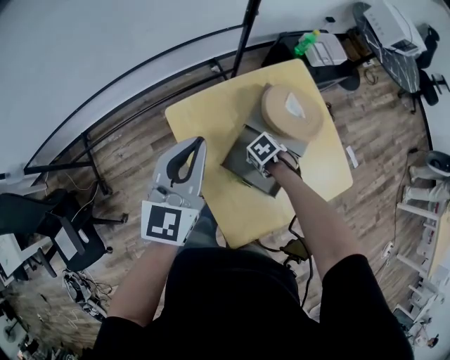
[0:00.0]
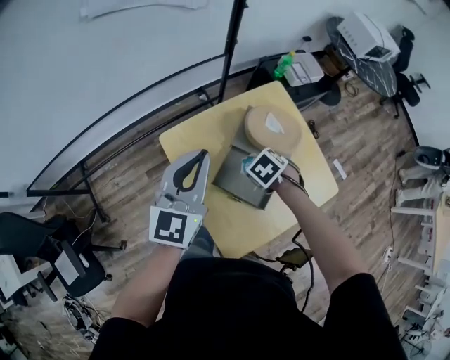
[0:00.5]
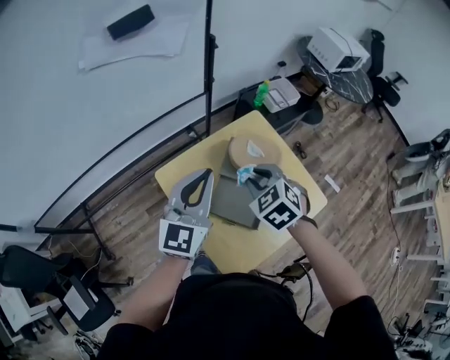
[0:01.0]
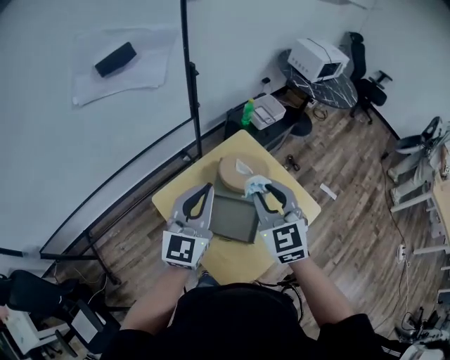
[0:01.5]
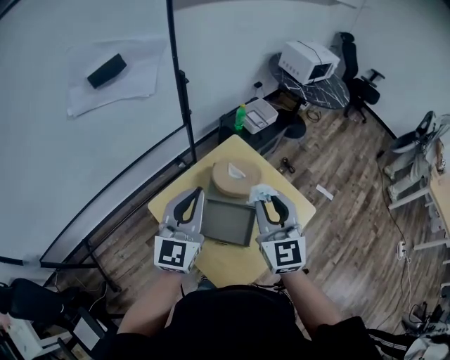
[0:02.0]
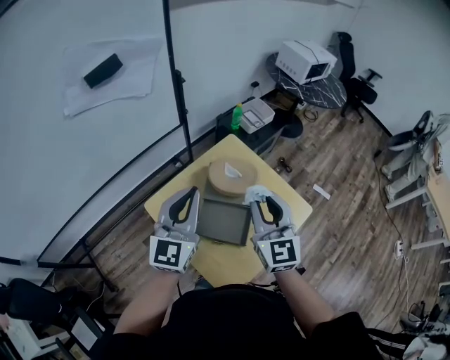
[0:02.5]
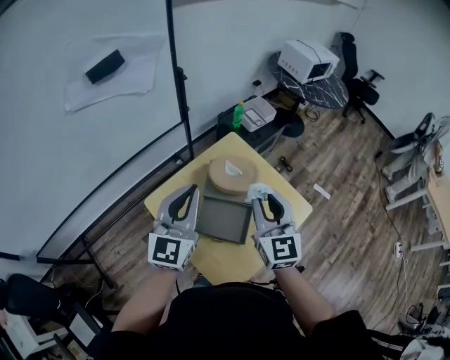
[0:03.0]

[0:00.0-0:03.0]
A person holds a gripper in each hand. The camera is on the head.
0:00.0 to 0:01.5: The left gripper travels upward by about 15 cm, and changes its angle by approximately 20 degrees. The right gripper shifts some 40 cm upward, and tilts its fingers about 60 degrees upward.
0:01.5 to 0:03.0: The right gripper ends up about 5 cm from where it was, and changes its angle by roughly 20 degrees.

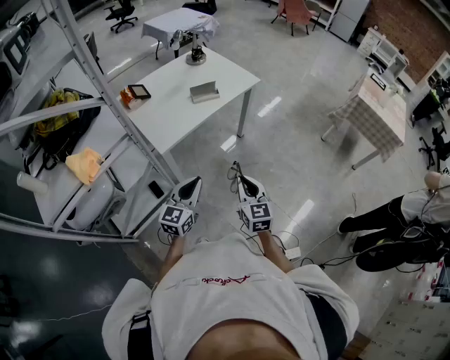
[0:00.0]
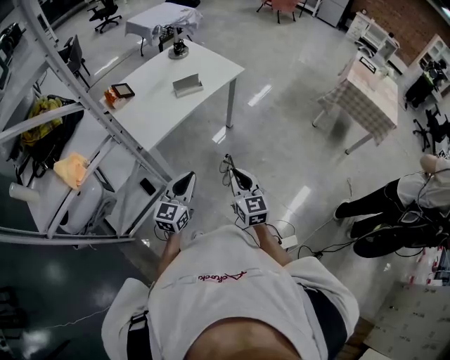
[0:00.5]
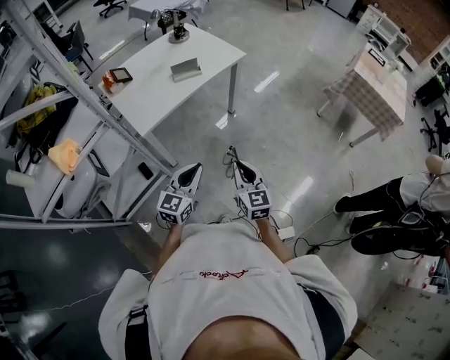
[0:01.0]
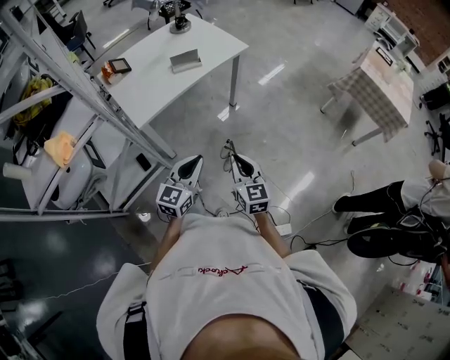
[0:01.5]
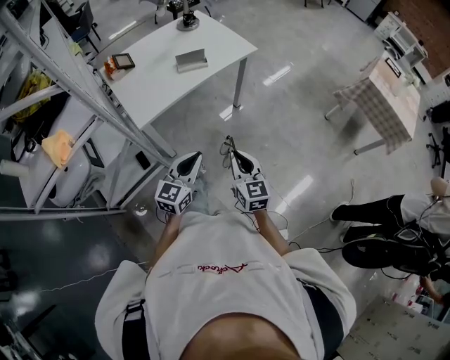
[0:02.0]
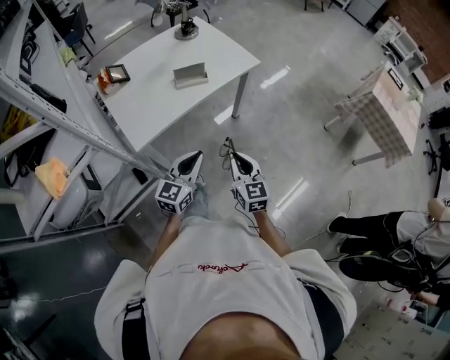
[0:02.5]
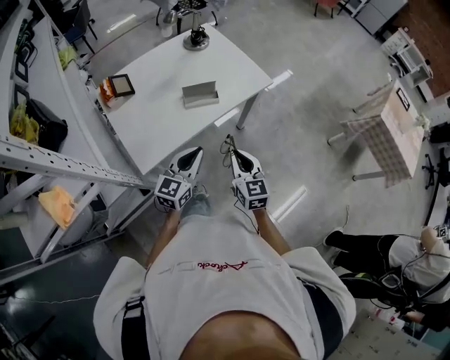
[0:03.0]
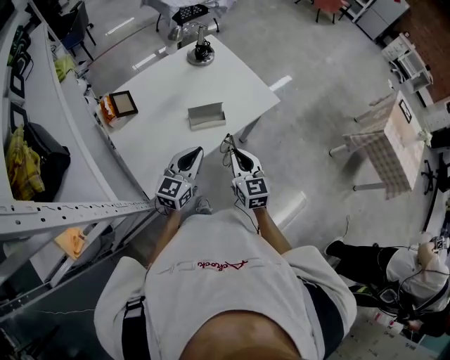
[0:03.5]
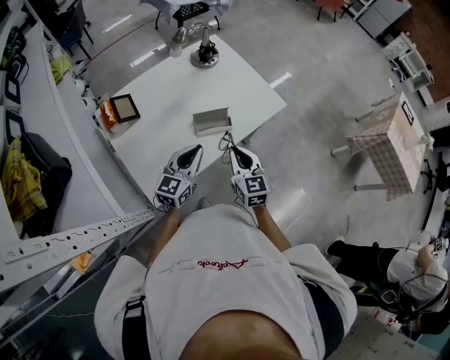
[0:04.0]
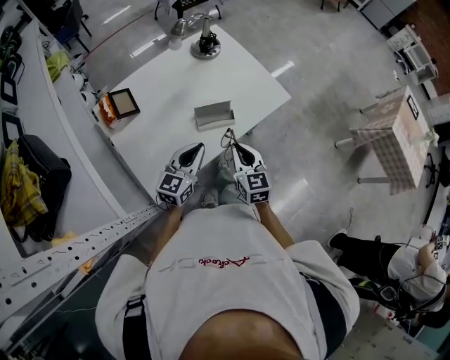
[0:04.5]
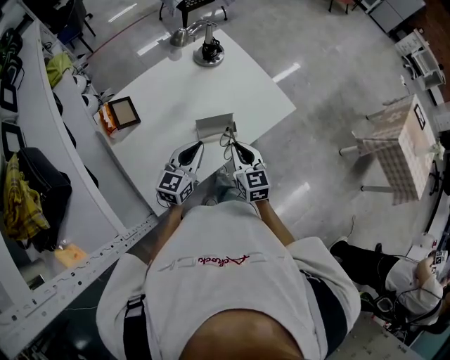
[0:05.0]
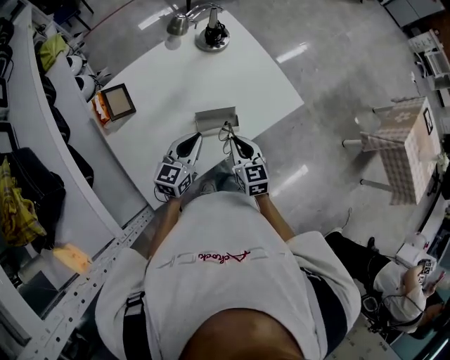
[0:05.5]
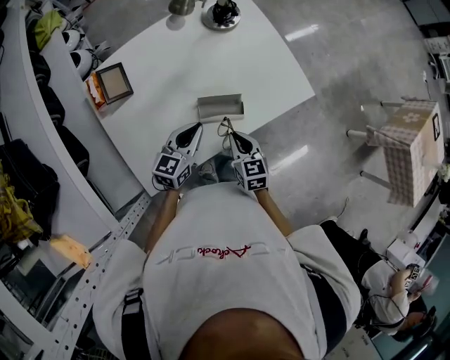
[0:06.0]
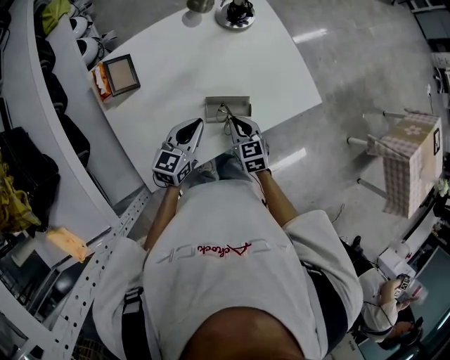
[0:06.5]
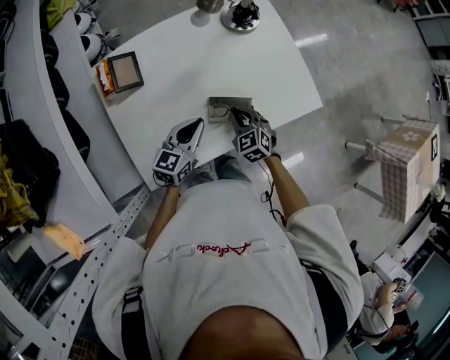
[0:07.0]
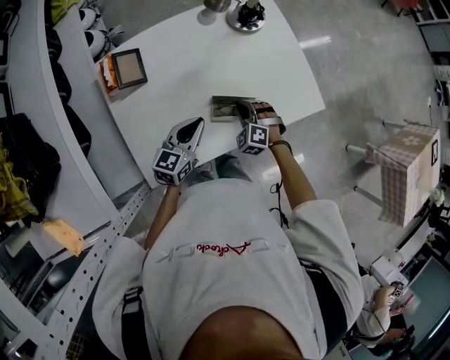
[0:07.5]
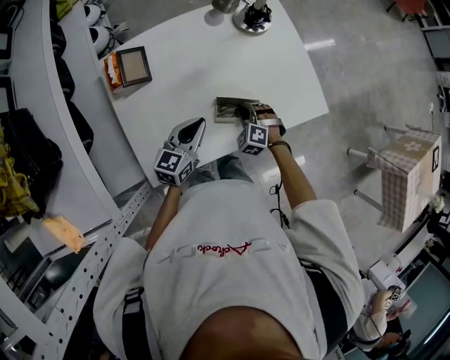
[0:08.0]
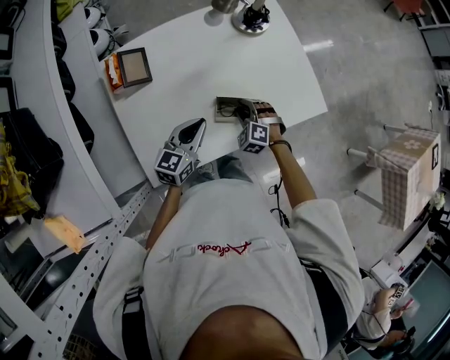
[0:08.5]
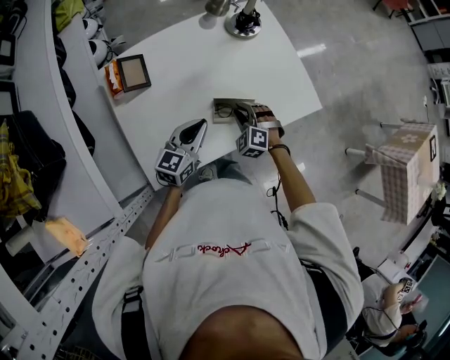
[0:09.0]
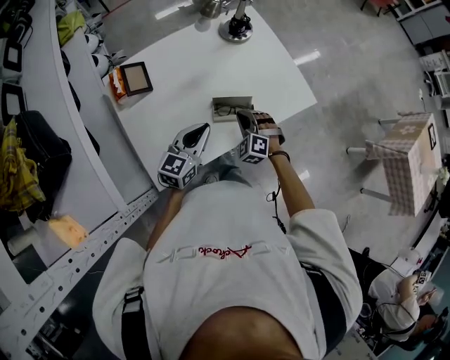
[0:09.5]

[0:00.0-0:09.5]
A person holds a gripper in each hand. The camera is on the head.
0:00.0 to 0:02.0: Both grippers travel together to the right and forward, some 10 cm.
0:02.0 to 0:04.0: The two grippers travel together, forward and to the left, roughly 40 cm.
0:04.0 to 0:05.5: Both grippers travel together forward and downward, roughly 10 cm.
0:05.5 to 0:07.5: The right gripper travels downward, forward and to the left by approximately 15 cm, and rotates around the line of its fingers by roughly 70 degrees, counterclockwise from behind. The left gripper shifts by approximately 5 cm.
0:07.5 to 0:09.5: The right gripper moves approximately 5 cm, and opens, then closes once more. The left gripper ends up approximately 5 cm from where it was.

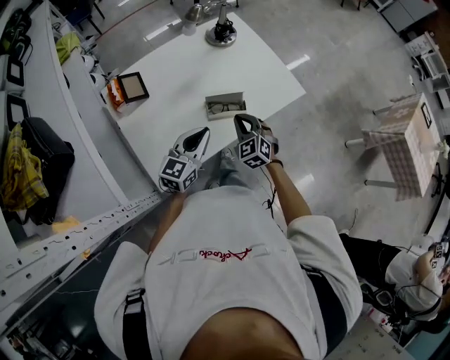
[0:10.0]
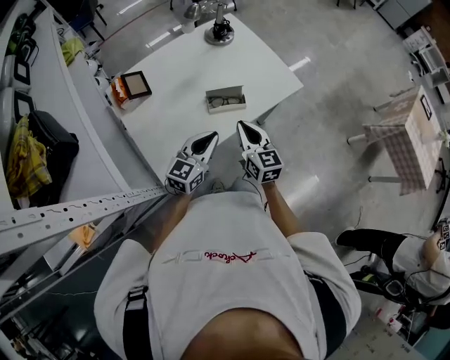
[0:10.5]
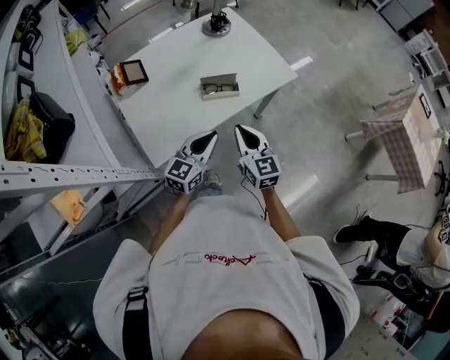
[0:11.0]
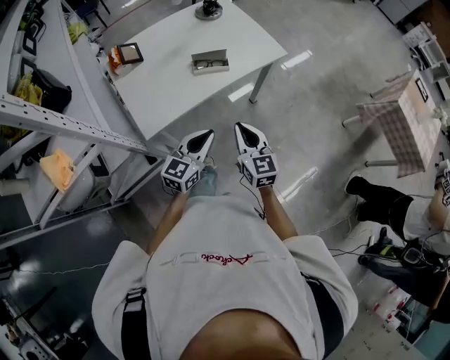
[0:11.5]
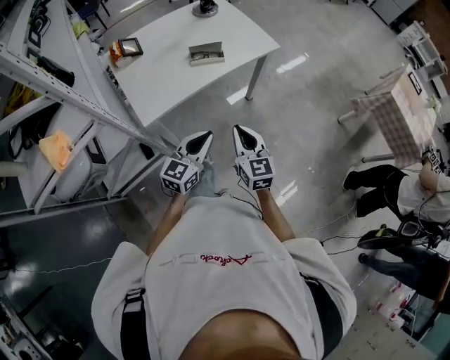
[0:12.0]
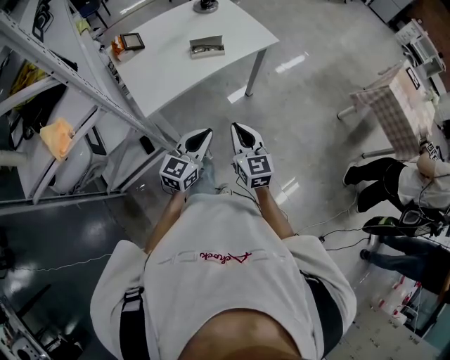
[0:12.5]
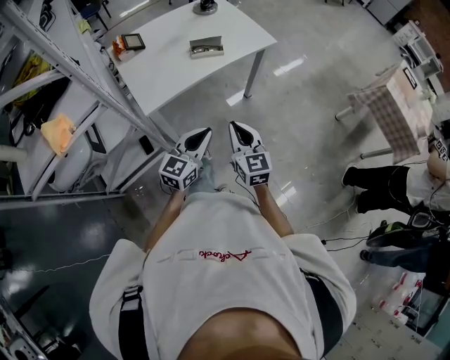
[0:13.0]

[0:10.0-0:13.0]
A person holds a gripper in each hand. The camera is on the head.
0:10.0 to 0:11.5: Both grippers travel together backward and to the right, approximately 25 cm. The right gripper rotates some 40 degrees.
0:11.5 to 0:13.0: Both grippers travel together backward, some 15 cm.

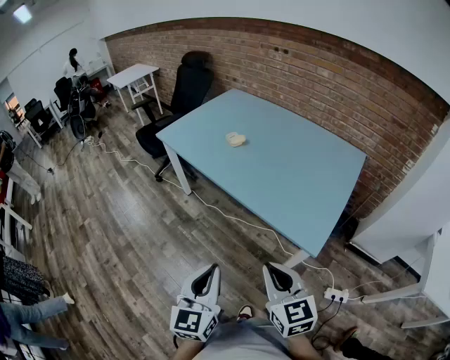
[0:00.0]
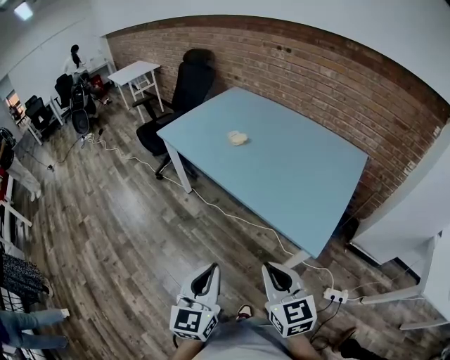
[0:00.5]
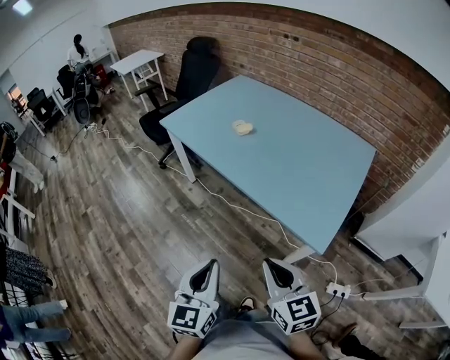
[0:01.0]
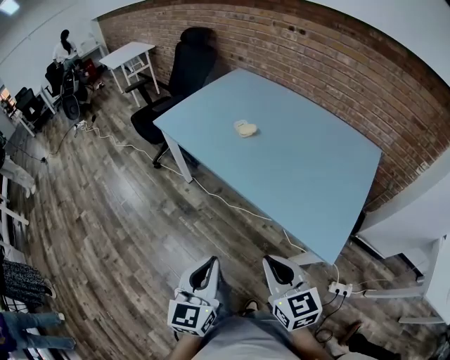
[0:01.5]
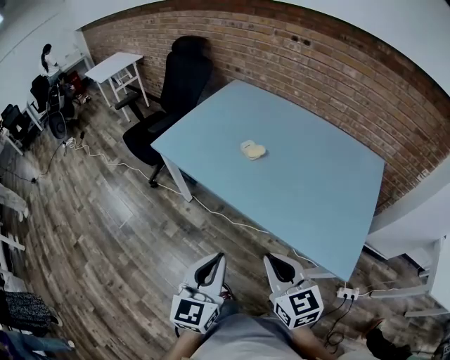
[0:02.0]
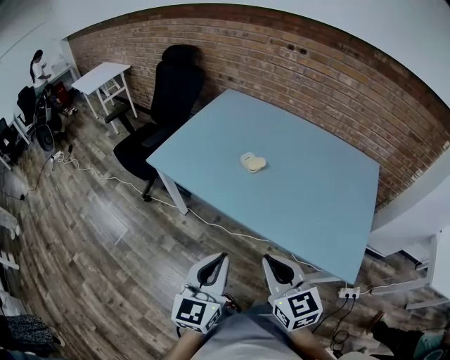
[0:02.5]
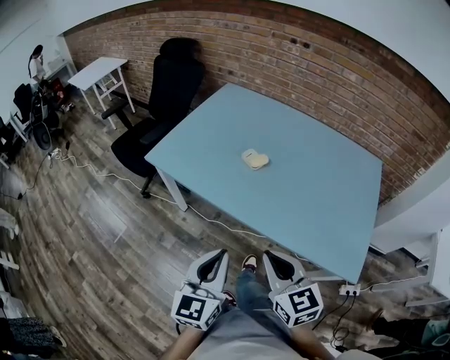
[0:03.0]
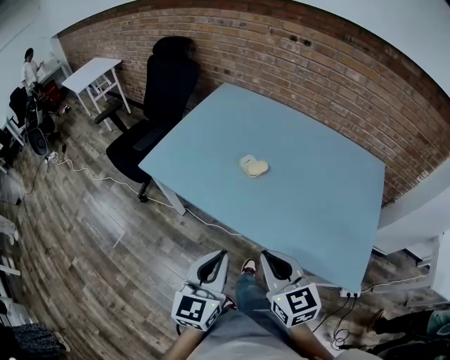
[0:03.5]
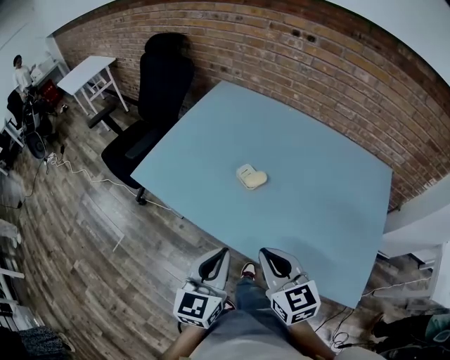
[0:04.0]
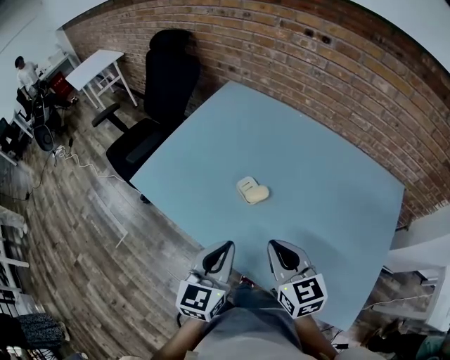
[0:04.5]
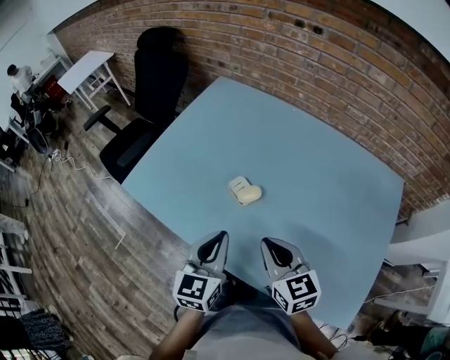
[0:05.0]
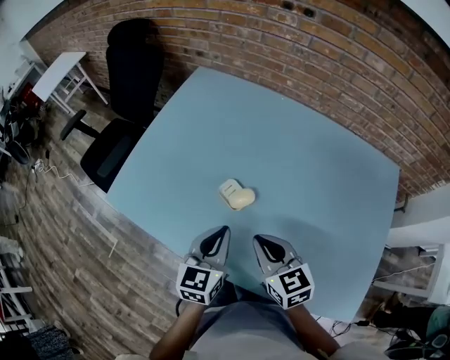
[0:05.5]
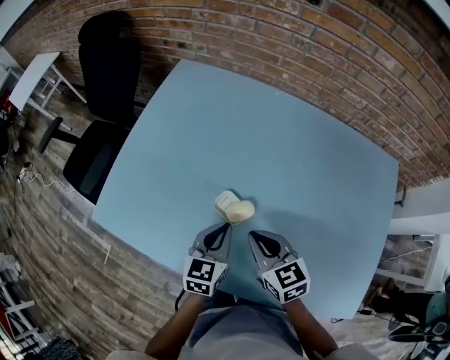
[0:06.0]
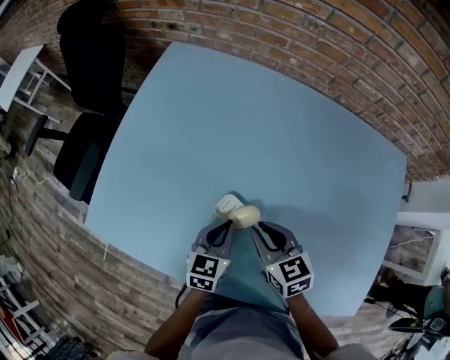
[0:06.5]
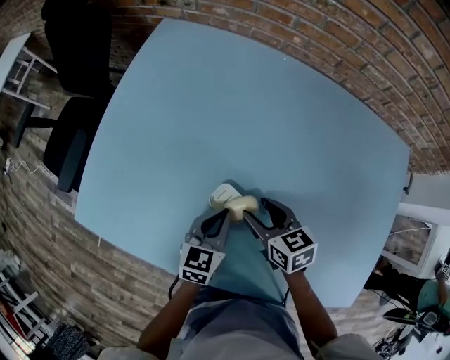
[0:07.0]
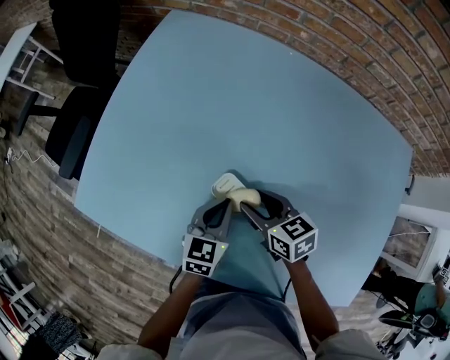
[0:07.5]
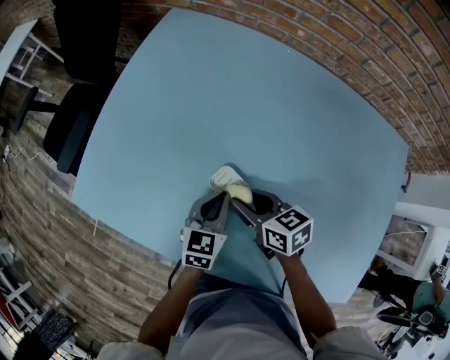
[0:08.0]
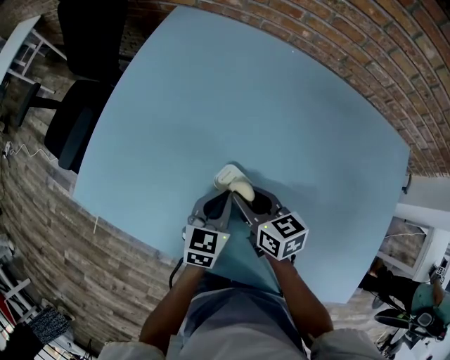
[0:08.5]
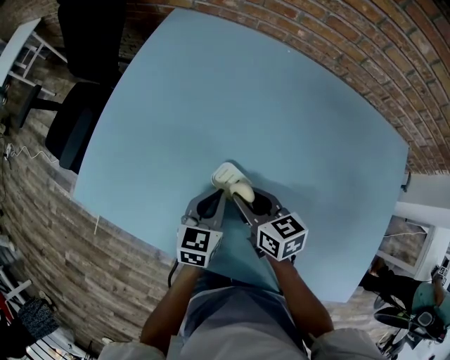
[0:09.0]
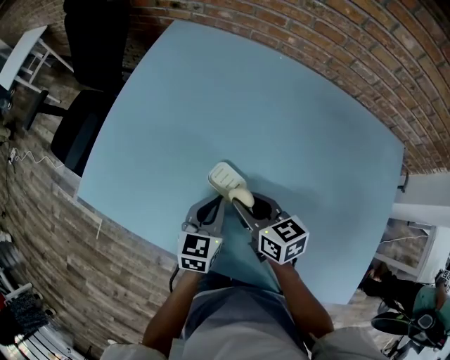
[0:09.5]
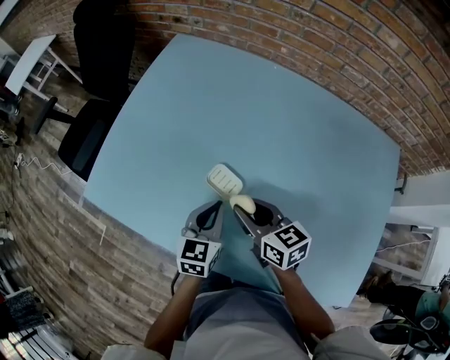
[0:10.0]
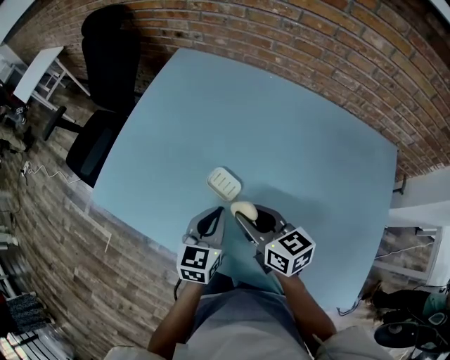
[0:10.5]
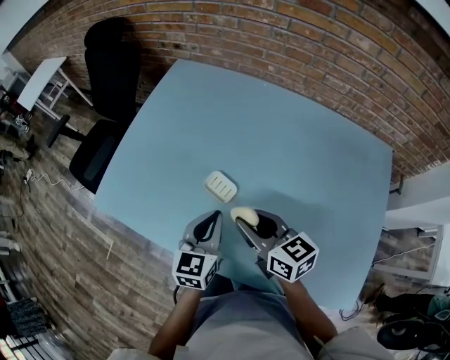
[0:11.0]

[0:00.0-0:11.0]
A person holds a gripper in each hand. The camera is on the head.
0:00.0 to 0:02.0: The grippers both shift forward and to the left by approximately 25 cm.
0:02.0 to 0:03.5: The right gripper moves forward and to the left, about 15 cm, while the left gripper shifts about 15 cm forward.
0:03.5 to 0:05.5: The two grippers go some 25 cm forward.
0:05.5 to 0:07.5: The grippers both shift downward and forward by roughly 20 cm. The right gripper rotates roughly 20 degrees, and opens its fingers.
0:07.5 to 0:09.0: The right gripper closes its fingers.
0:09.0 to 0:11.0: Both grippers travel together upward and backward, about 15 cm.
